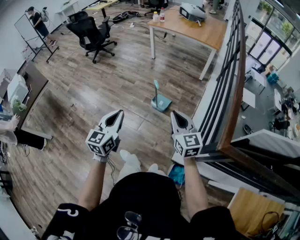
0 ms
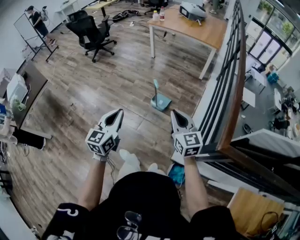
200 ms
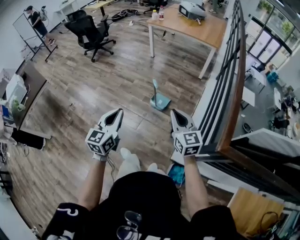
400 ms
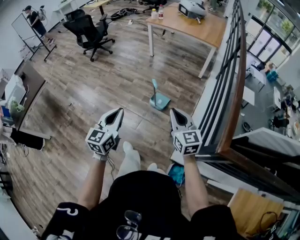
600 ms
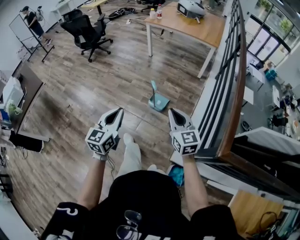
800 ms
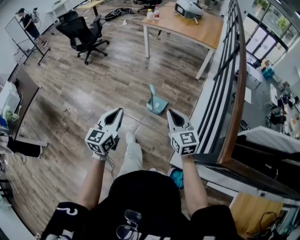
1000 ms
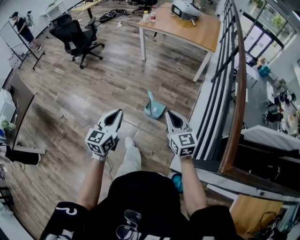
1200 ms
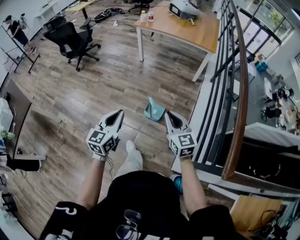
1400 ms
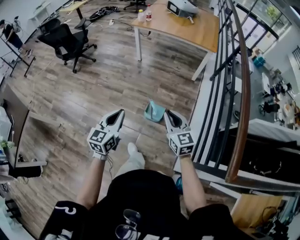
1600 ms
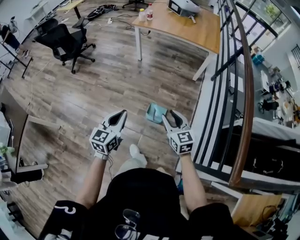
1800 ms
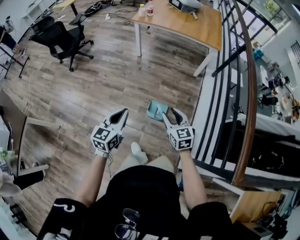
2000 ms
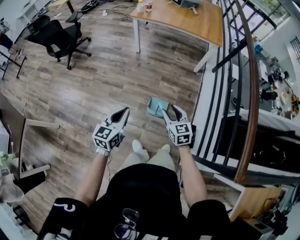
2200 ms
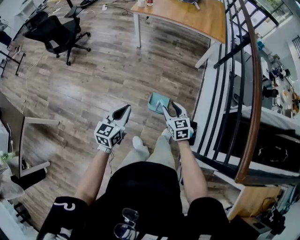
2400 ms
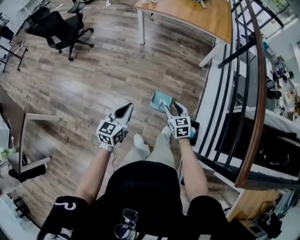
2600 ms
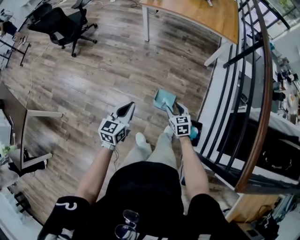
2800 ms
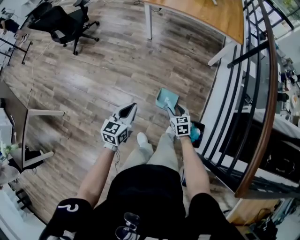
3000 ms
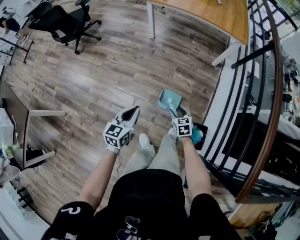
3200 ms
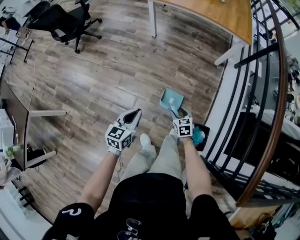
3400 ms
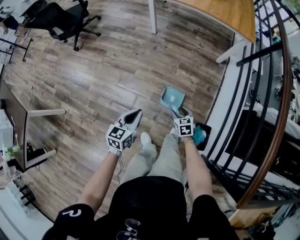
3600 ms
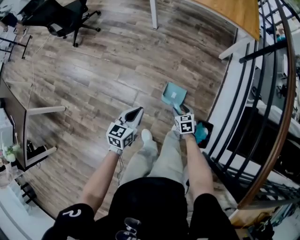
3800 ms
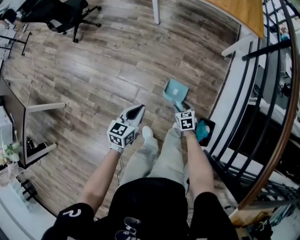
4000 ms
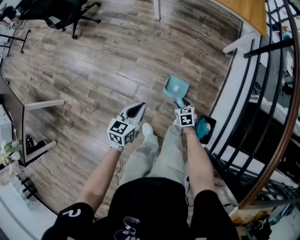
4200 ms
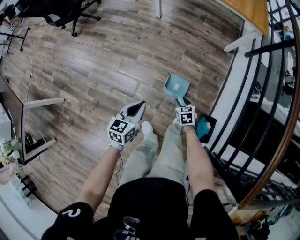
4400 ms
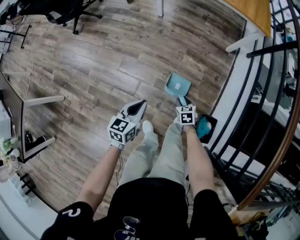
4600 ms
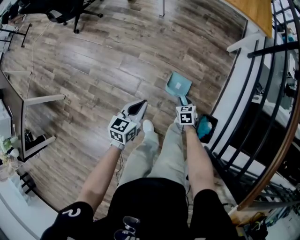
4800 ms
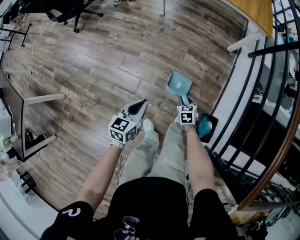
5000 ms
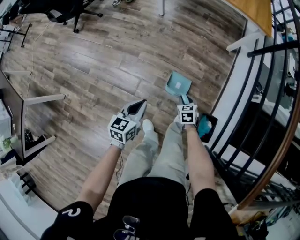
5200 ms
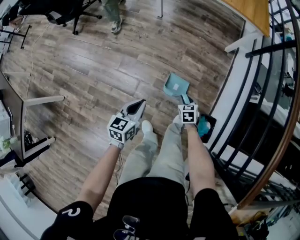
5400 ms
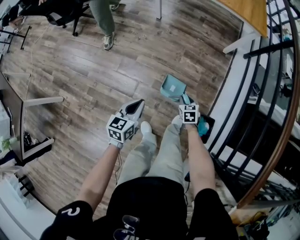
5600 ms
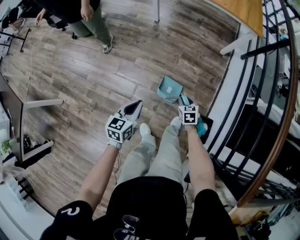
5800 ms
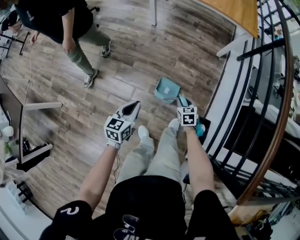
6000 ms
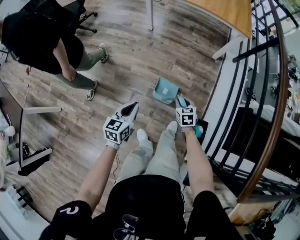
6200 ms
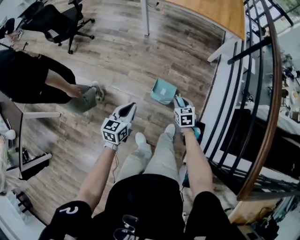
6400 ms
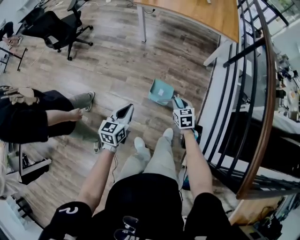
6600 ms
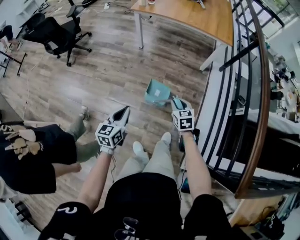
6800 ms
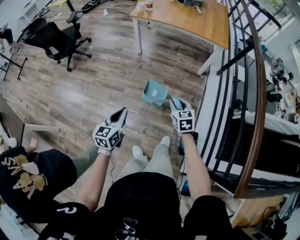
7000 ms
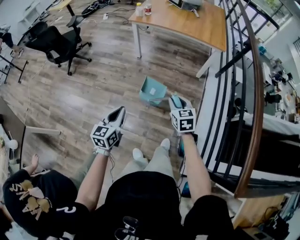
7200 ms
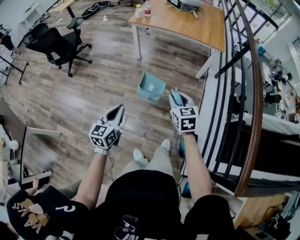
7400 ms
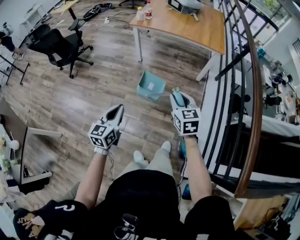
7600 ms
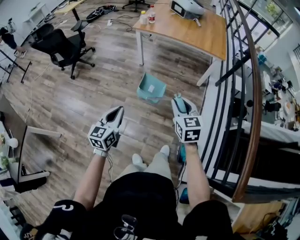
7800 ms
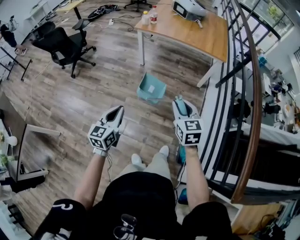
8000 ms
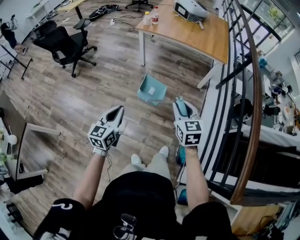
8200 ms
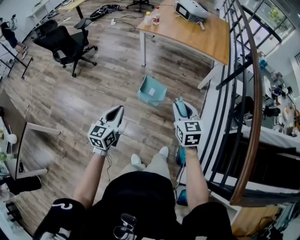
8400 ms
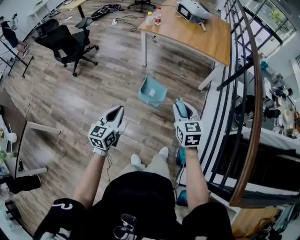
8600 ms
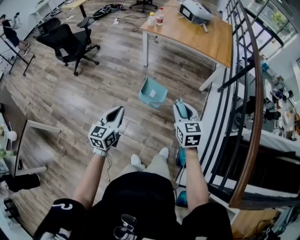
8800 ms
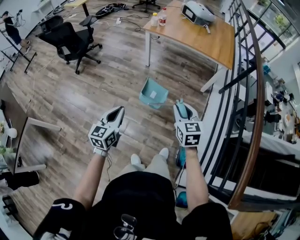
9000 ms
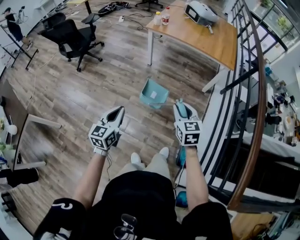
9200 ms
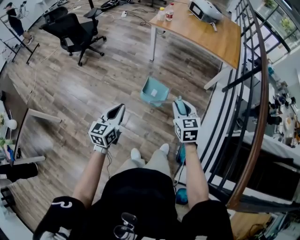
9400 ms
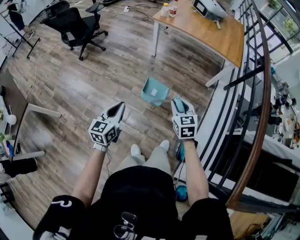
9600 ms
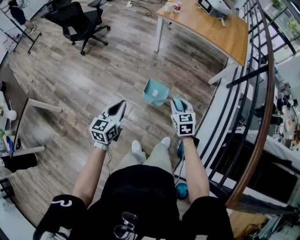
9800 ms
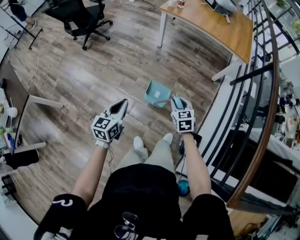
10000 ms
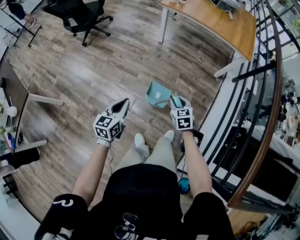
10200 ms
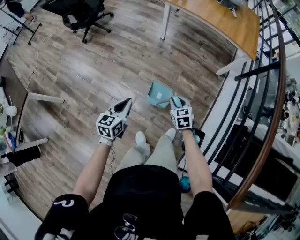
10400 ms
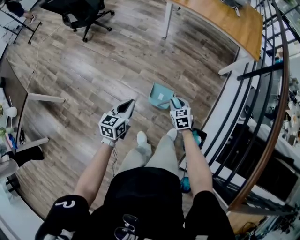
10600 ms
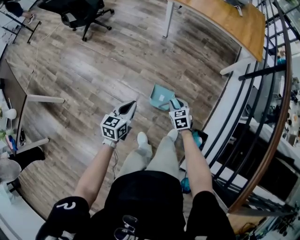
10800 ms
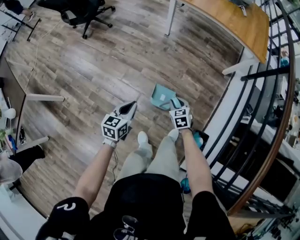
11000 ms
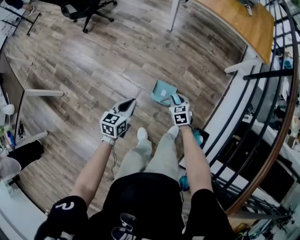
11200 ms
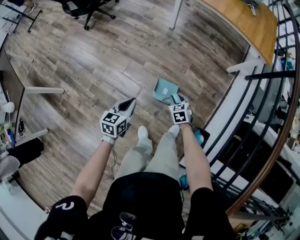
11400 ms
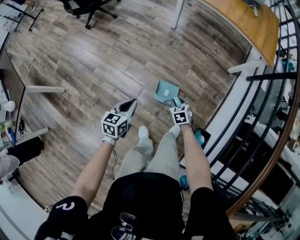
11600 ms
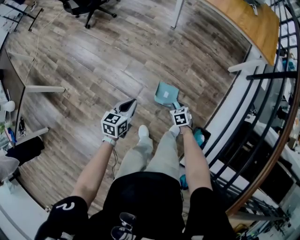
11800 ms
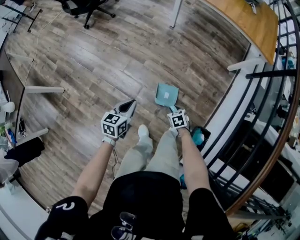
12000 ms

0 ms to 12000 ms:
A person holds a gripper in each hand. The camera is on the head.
0 ms to 1600 ms: The two grippers go about 30 cm forward.
1600 ms to 3000 ms: The right gripper heads downward and forward, covering some 35 cm, rotates approximately 30 degrees, and opens its fingers. Meanwhile the left gripper travels forward and downward by roughly 20 cm.
3000 ms to 4400 ms: The two grippers go approximately 15 cm downward.
4400 ms to 6000 ms: The right gripper heads upward, covering some 5 cm.
6000 ms to 7600 ms: The right gripper shifts some 40 cm upward, and turns by approximately 20 degrees; the left gripper shifts approximately 20 cm upward.
7600 ms to 9000 ms: The grippers stay close to where they were, moving slightly.
9000 ms to 10400 ms: The right gripper heads downward, covering about 25 cm, and swivels roughly 20 degrees. The left gripper heads downward, covering some 15 cm.
10400 ms to 12000 ms: The right gripper moves downward, approximately 20 cm, and changes its angle by approximately 20 degrees, while the left gripper shifts approximately 10 cm downward.

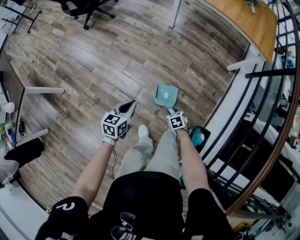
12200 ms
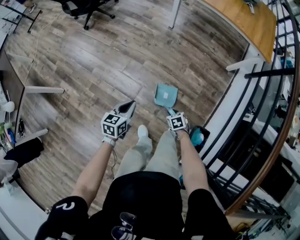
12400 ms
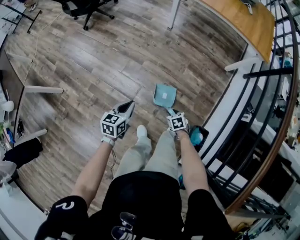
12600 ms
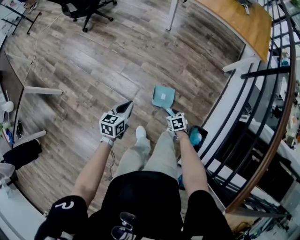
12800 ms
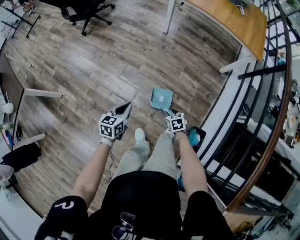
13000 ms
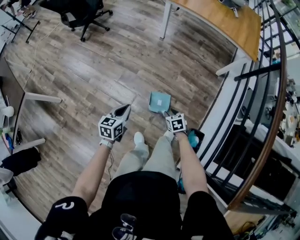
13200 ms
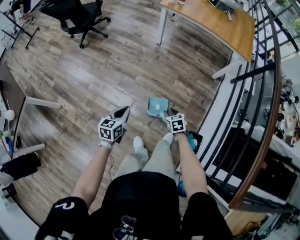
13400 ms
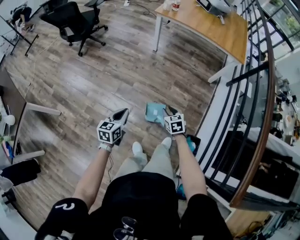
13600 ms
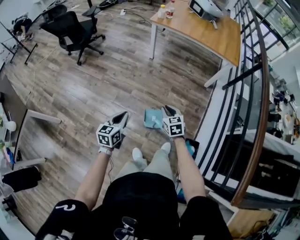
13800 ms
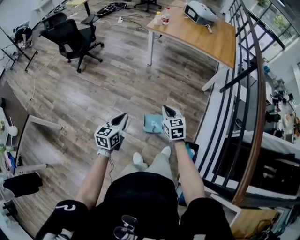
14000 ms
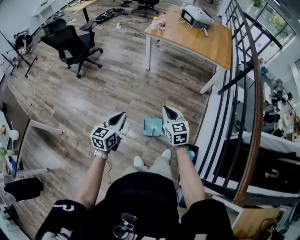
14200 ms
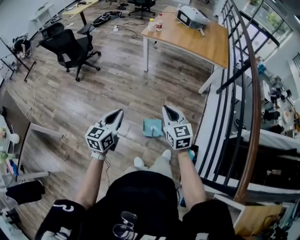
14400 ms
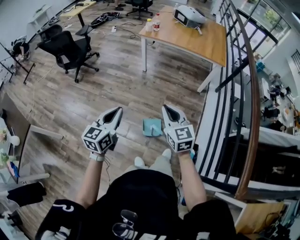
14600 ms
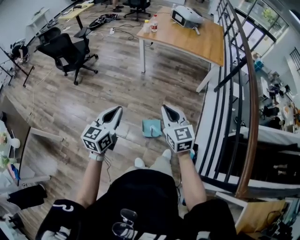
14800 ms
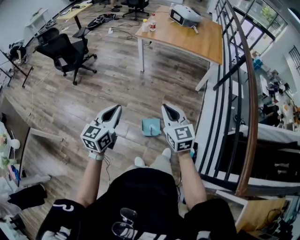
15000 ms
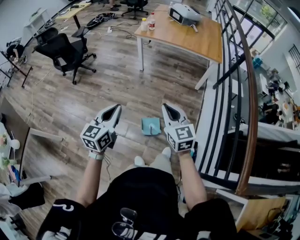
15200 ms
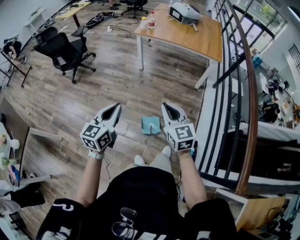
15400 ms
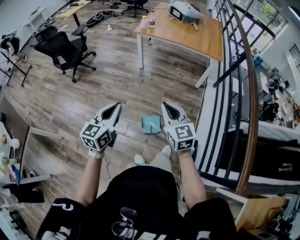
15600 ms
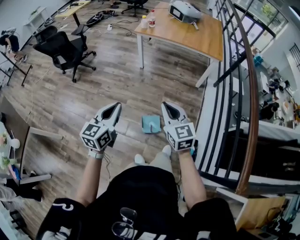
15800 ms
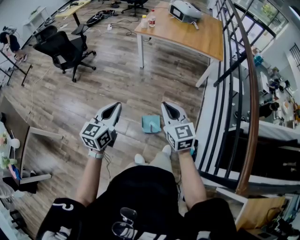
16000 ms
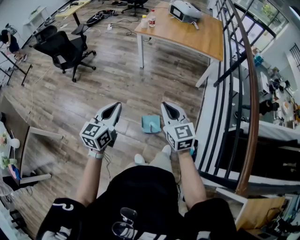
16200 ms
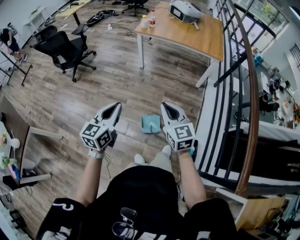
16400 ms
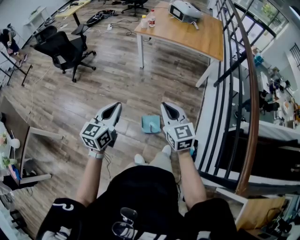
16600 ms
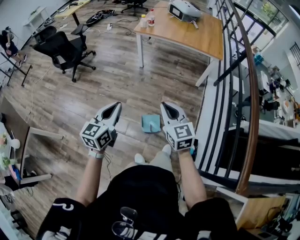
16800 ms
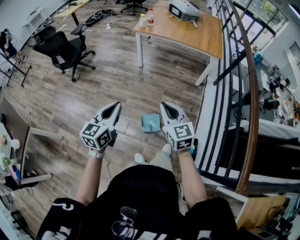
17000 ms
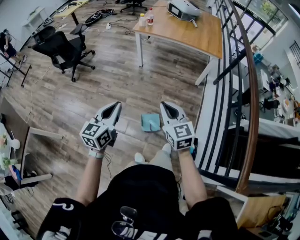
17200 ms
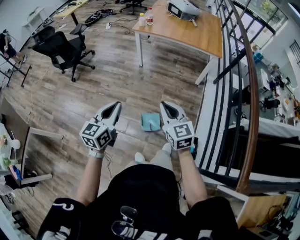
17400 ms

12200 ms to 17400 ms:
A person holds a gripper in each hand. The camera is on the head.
12200 ms to 14000 ms: The right gripper shifts some 35 cm upward, angles its fingers upward, by about 40 degrees, and closes up. Meanwhile the left gripper shifts some 15 cm upward.
14000 ms to 15600 ms: Both grippers travel together upward, approximately 20 cm.
15600 ms to 17400 ms: The grippers stay close to where they were, moving slightly.

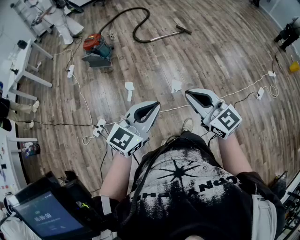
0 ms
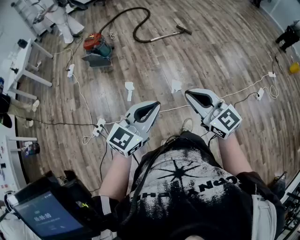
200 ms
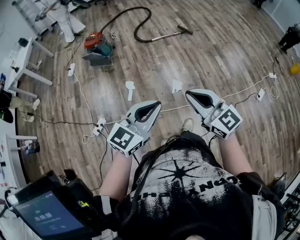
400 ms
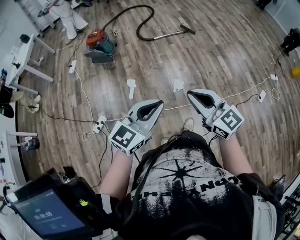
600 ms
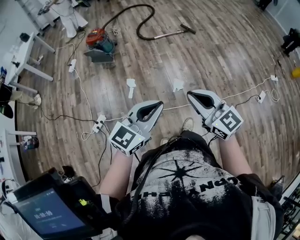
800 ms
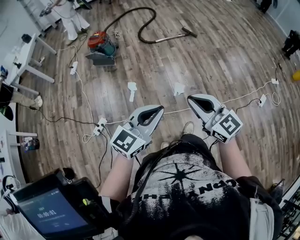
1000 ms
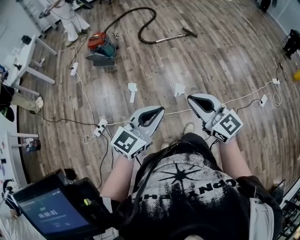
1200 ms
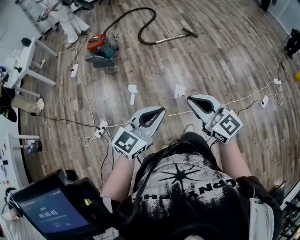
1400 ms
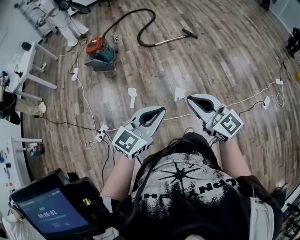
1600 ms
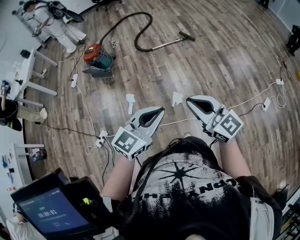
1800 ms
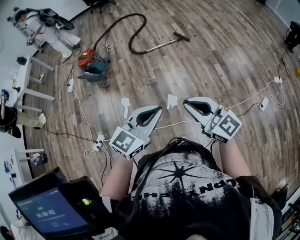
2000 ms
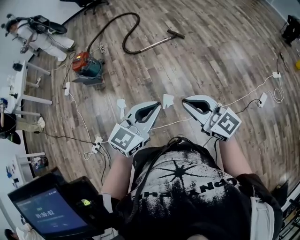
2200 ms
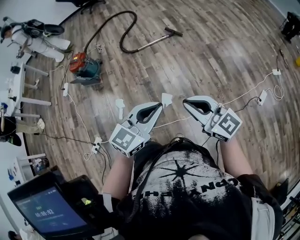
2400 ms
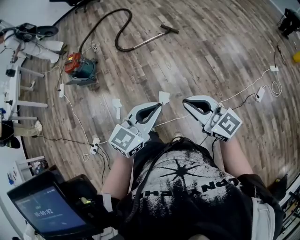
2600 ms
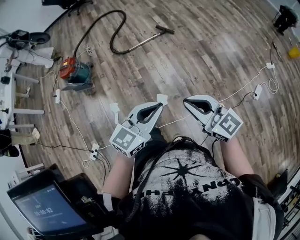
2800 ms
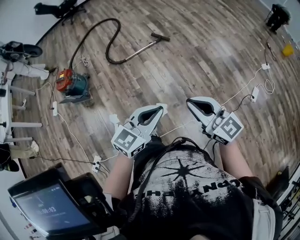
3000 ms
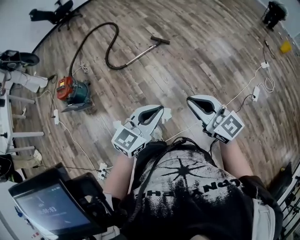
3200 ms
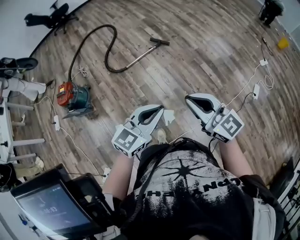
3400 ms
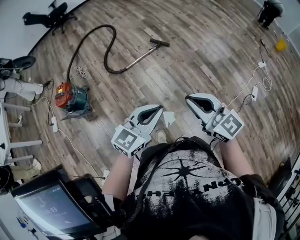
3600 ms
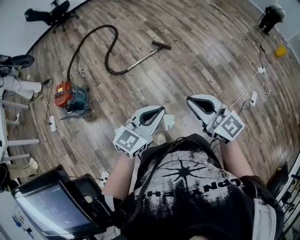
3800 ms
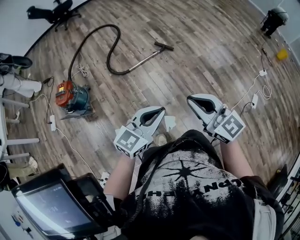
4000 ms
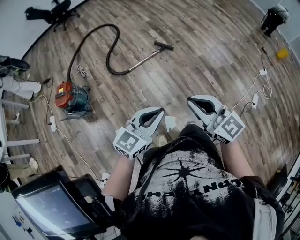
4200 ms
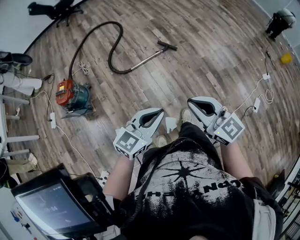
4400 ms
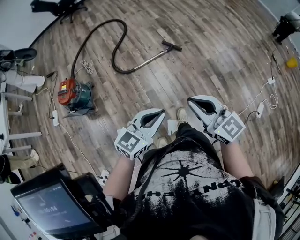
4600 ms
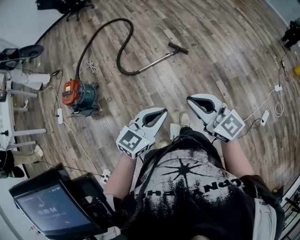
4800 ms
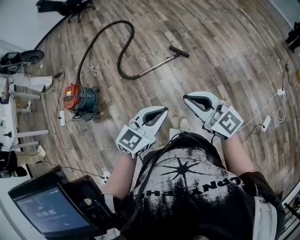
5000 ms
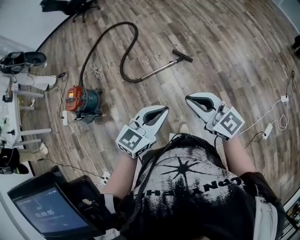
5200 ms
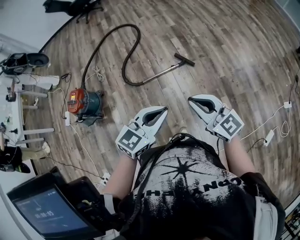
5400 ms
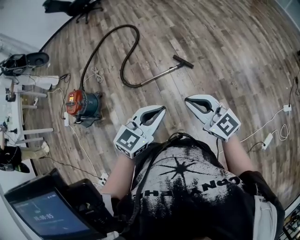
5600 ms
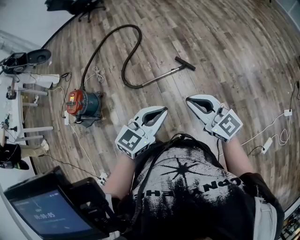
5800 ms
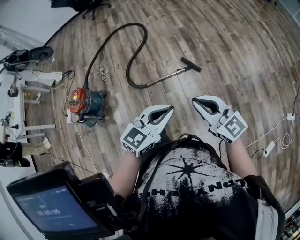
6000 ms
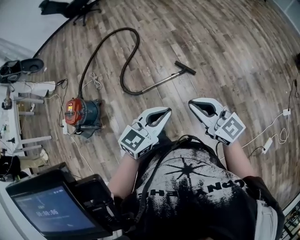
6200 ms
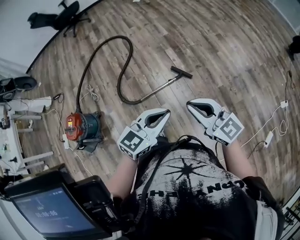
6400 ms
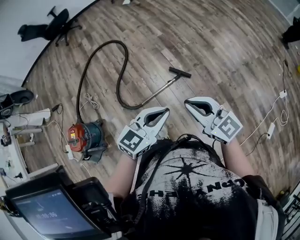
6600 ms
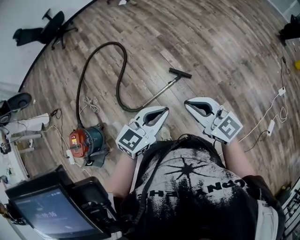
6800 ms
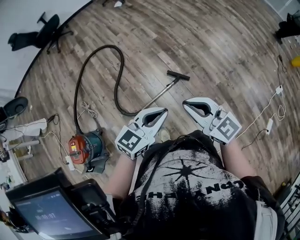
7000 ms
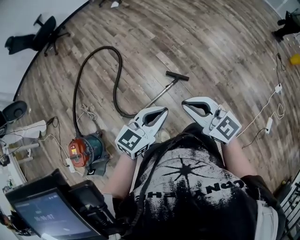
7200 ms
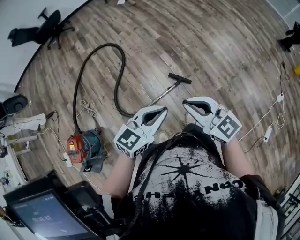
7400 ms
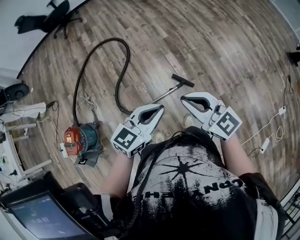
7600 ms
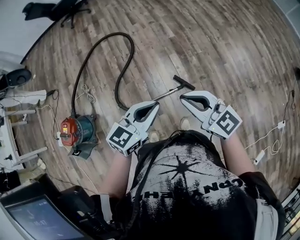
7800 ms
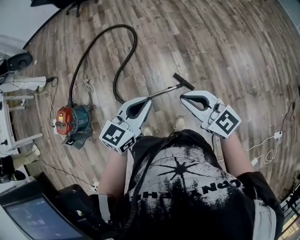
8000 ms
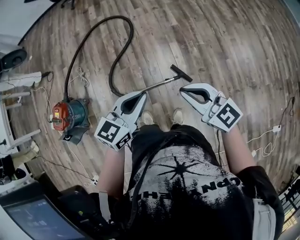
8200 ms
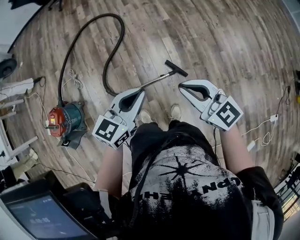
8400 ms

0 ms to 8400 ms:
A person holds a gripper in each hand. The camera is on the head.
0 ms to 1400 ms: The left gripper ends up some 5 cm from where it was.
1400 ms to 2800 ms: The two grippers go some 30 cm forward and to the right.
2800 ms to 4200 ms: The left gripper is displaced to the left and forward by about 25 cm. Meanwhile the right gripper shifts some 25 cm forward and to the left.
4200 ms to 5600 ms: The two grippers go roughly 35 cm forward and to the right.
5600 ms to 7000 ms: Both grippers move forward and to the left, roughly 30 cm.
7000 ms to 8400 ms: The right gripper ends up some 20 cm from where it was. The left gripper shifts by about 20 cm, and turns by some 30 degrees.
